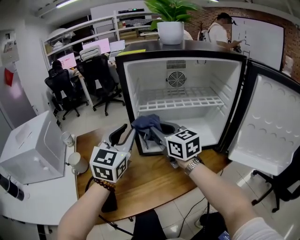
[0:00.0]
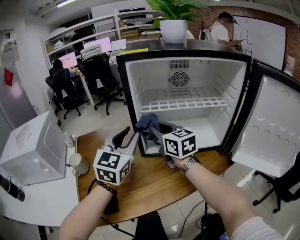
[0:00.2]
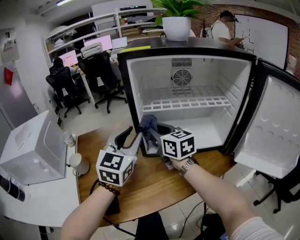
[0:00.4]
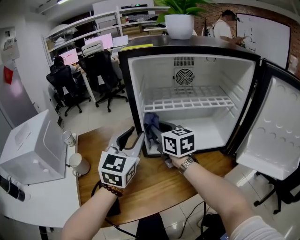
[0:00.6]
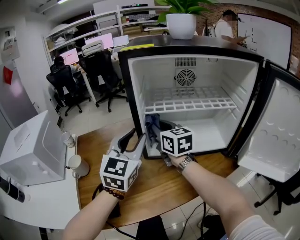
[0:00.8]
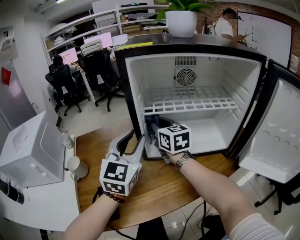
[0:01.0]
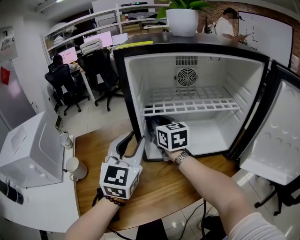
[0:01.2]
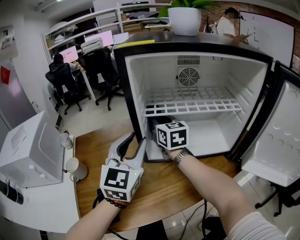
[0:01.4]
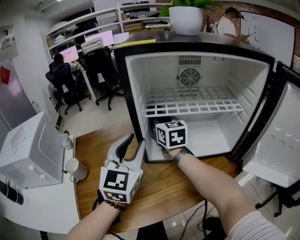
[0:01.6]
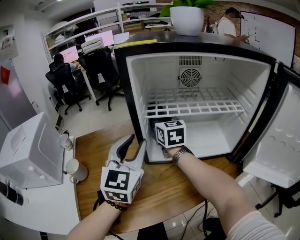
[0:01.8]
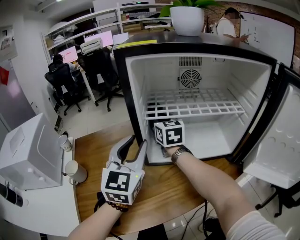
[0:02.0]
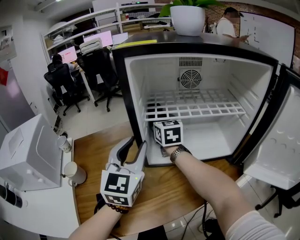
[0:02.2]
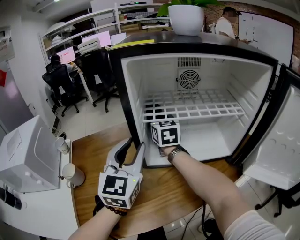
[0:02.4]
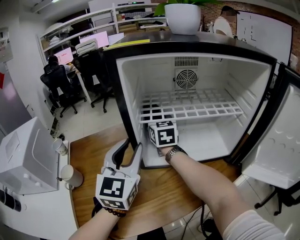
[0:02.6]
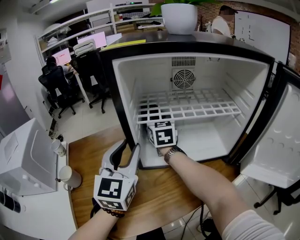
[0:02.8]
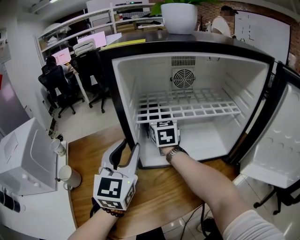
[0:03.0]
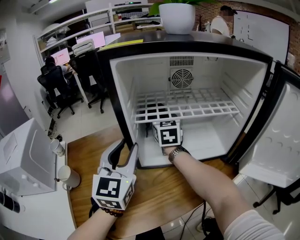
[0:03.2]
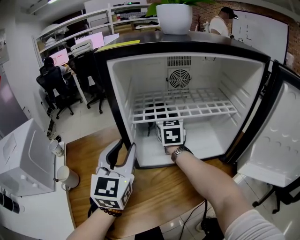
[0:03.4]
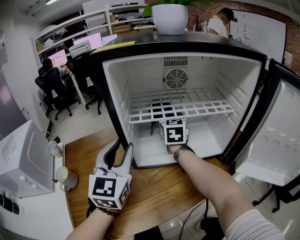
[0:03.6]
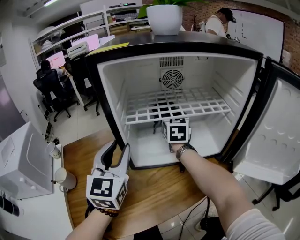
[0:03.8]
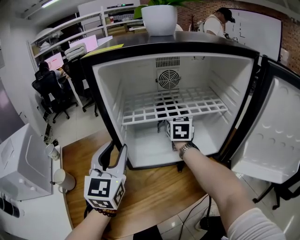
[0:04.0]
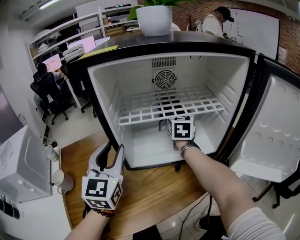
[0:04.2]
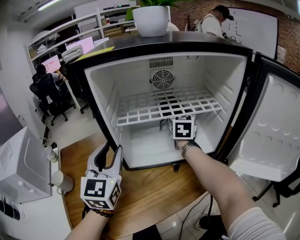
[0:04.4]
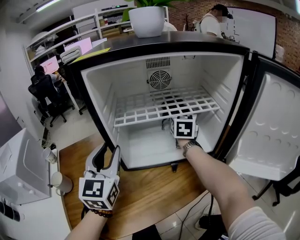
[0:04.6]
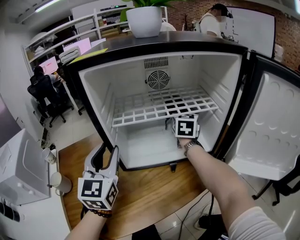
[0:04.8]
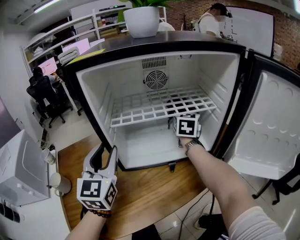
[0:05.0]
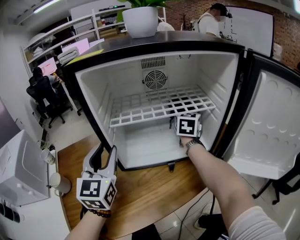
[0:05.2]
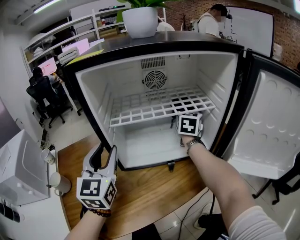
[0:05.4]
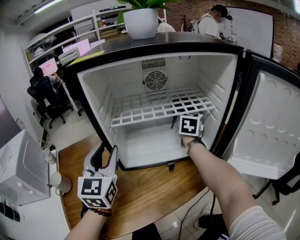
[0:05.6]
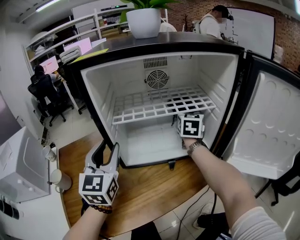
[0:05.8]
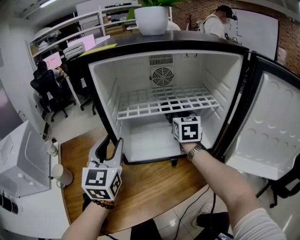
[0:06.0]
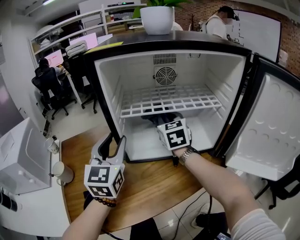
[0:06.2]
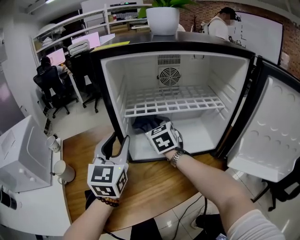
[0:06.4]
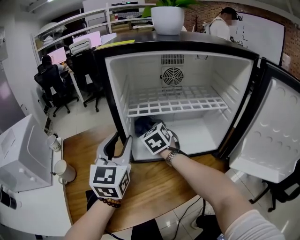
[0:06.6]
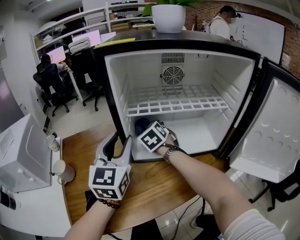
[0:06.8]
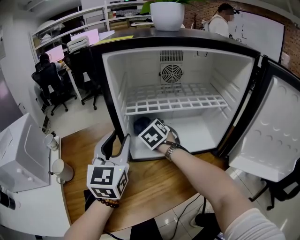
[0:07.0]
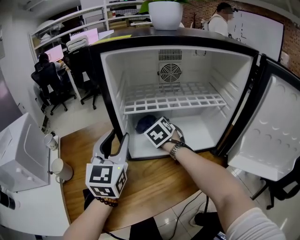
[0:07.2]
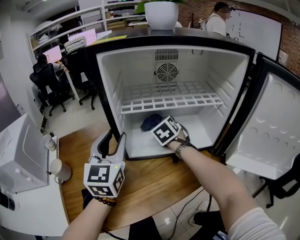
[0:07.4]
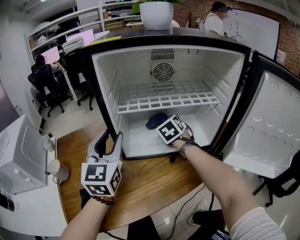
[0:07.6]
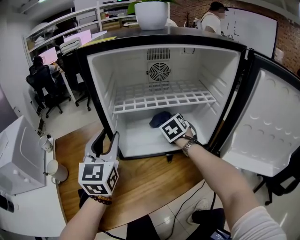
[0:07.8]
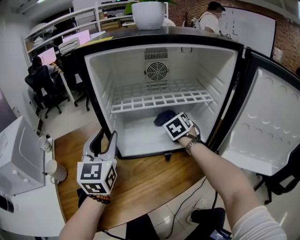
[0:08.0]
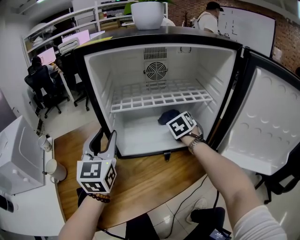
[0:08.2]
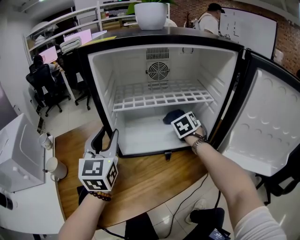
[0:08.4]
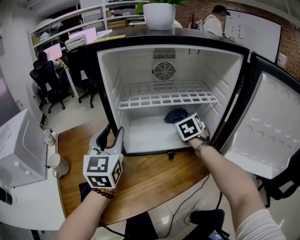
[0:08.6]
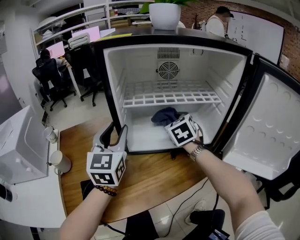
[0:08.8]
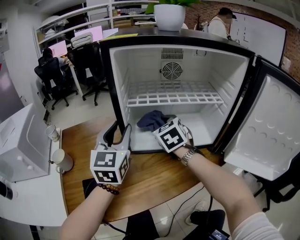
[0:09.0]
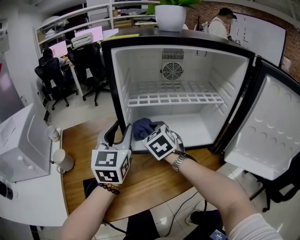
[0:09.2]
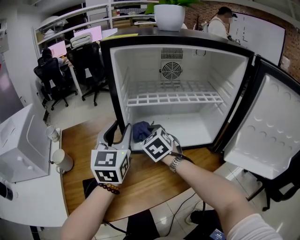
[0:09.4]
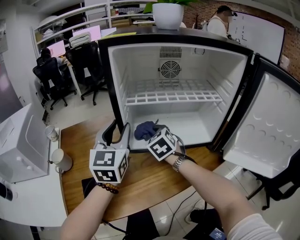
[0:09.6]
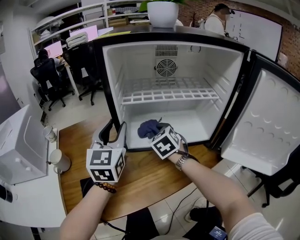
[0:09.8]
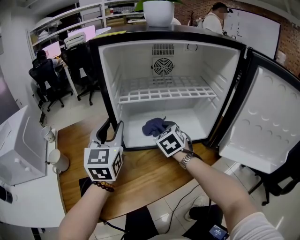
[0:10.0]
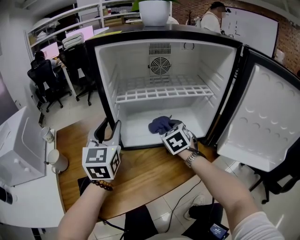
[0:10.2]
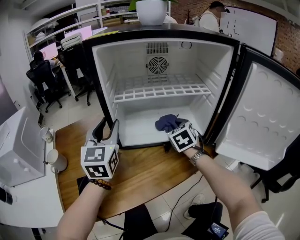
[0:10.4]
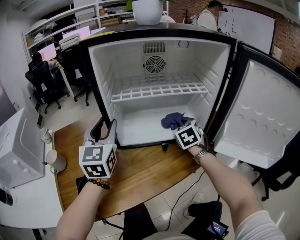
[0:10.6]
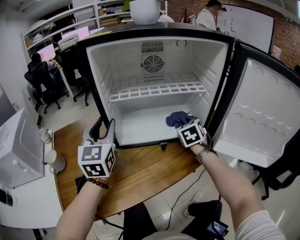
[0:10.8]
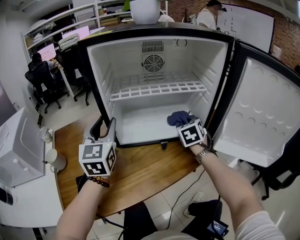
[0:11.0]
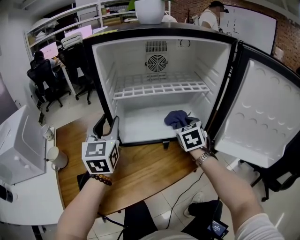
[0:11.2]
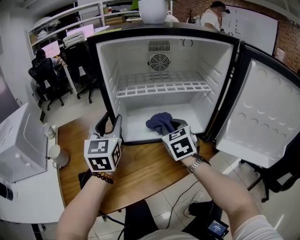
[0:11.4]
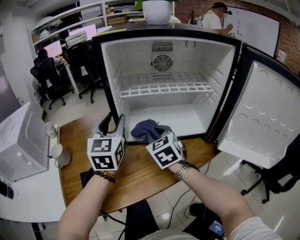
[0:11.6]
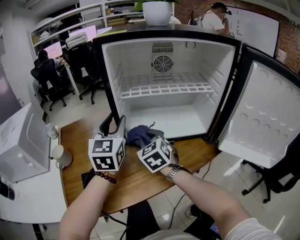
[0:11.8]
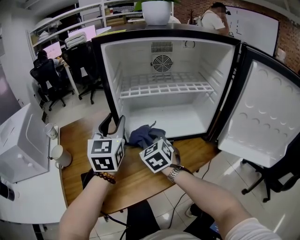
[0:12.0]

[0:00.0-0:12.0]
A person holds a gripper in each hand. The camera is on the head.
0:00.0 to 0:01.6: The right gripper goes about 15 cm forward.
0:01.6 to 0:03.0: The right gripper moves roughly 5 cm.
0:03.0 to 0:04.4: The right gripper is displaced to the right by approximately 15 cm.
0:04.4 to 0:06.0: The right gripper moves some 10 cm to the right and comes back.
0:06.0 to 0:07.6: The right gripper travels downward by about 10 cm, reaches about 20 cm to the left, then returns, and rotates approximately 40 degrees.
0:07.6 to 0:09.0: The right gripper goes about 10 cm backward, to the left and upward.
0:09.0 to 0:10.4: The right gripper is displaced to the right and downward by roughly 15 cm.
0:10.4 to 0:12.0: The right gripper travels to the left and backward by some 15 cm.

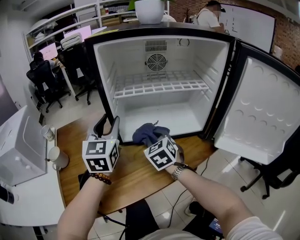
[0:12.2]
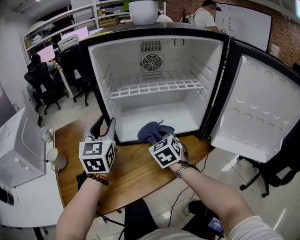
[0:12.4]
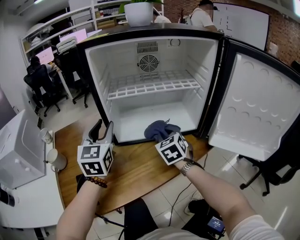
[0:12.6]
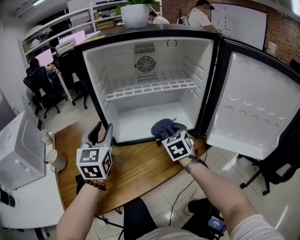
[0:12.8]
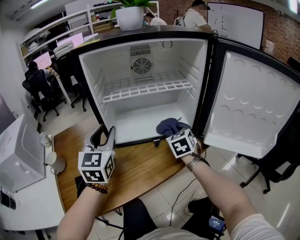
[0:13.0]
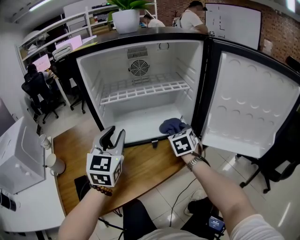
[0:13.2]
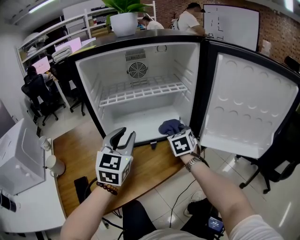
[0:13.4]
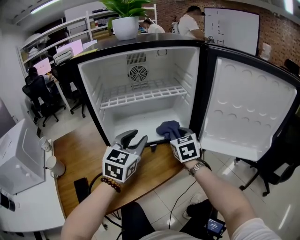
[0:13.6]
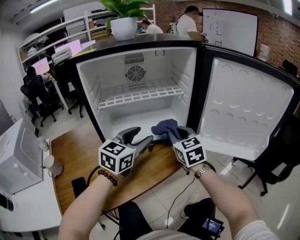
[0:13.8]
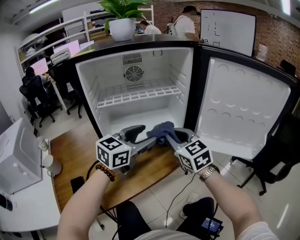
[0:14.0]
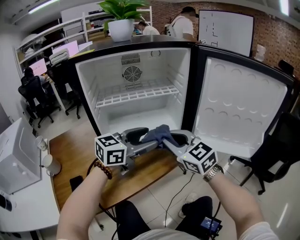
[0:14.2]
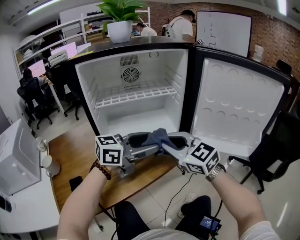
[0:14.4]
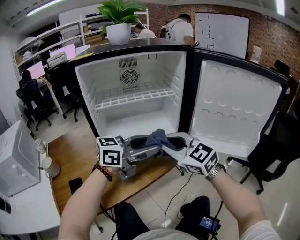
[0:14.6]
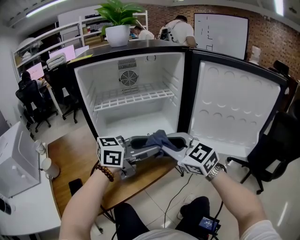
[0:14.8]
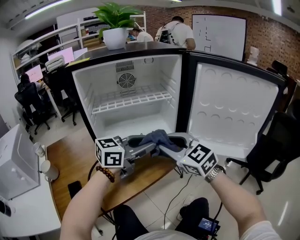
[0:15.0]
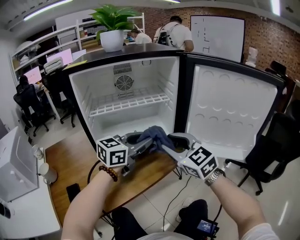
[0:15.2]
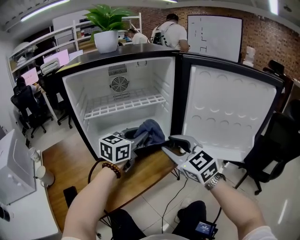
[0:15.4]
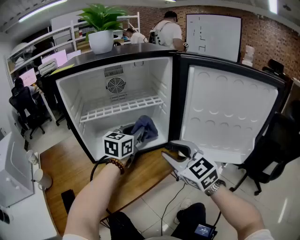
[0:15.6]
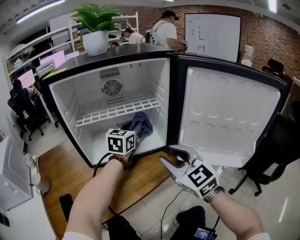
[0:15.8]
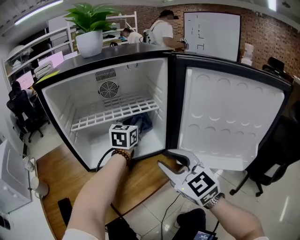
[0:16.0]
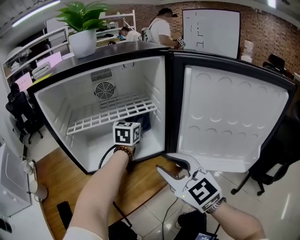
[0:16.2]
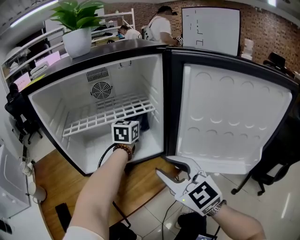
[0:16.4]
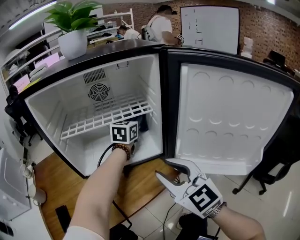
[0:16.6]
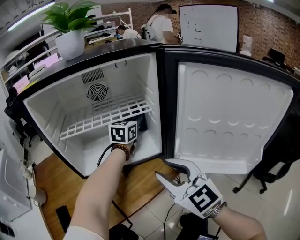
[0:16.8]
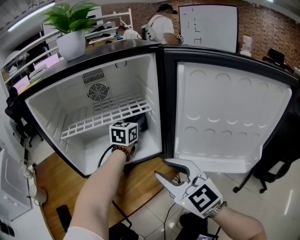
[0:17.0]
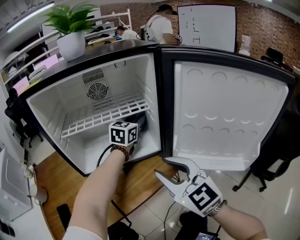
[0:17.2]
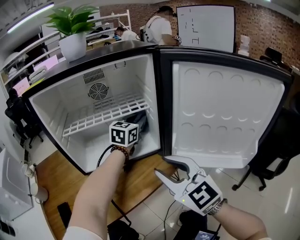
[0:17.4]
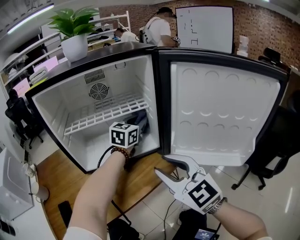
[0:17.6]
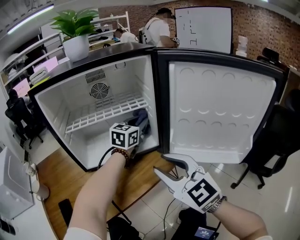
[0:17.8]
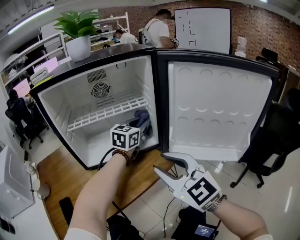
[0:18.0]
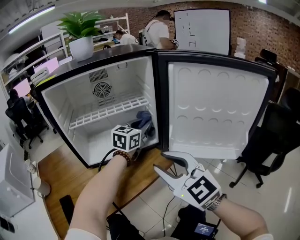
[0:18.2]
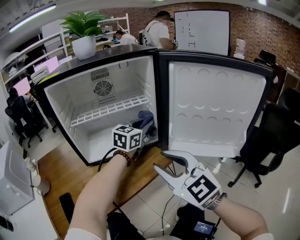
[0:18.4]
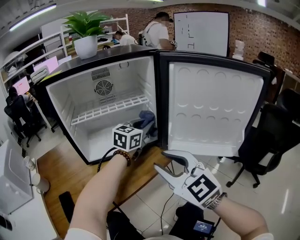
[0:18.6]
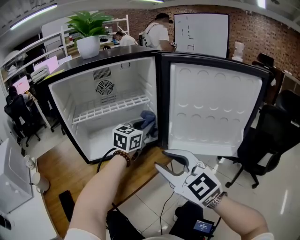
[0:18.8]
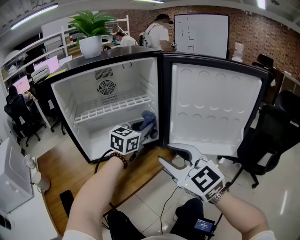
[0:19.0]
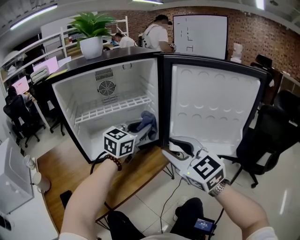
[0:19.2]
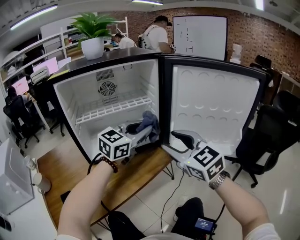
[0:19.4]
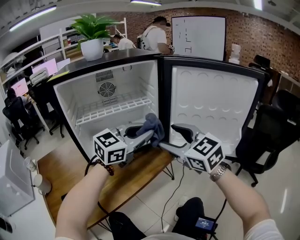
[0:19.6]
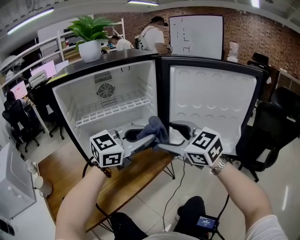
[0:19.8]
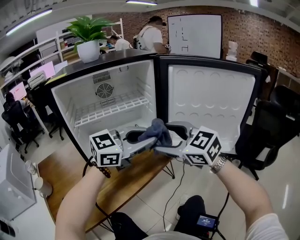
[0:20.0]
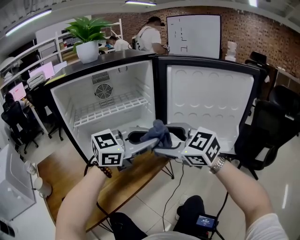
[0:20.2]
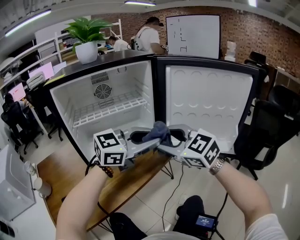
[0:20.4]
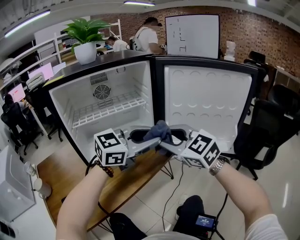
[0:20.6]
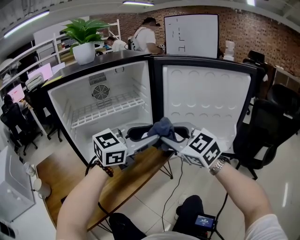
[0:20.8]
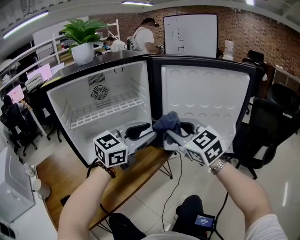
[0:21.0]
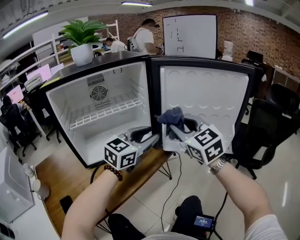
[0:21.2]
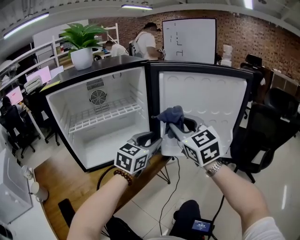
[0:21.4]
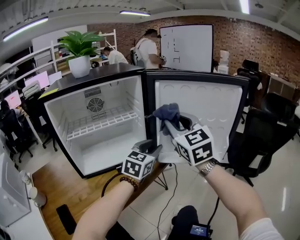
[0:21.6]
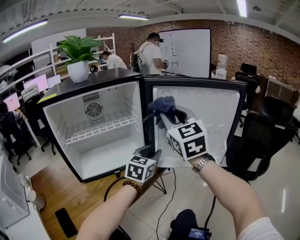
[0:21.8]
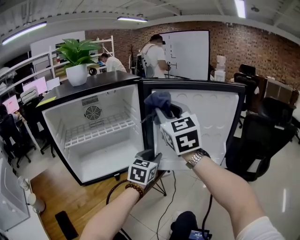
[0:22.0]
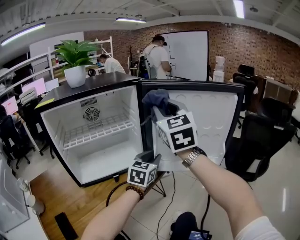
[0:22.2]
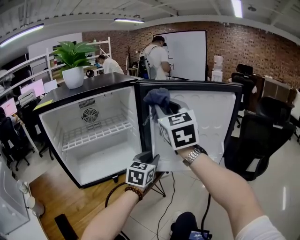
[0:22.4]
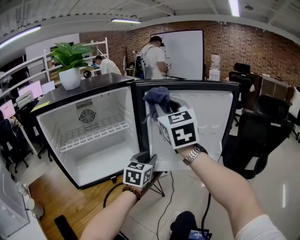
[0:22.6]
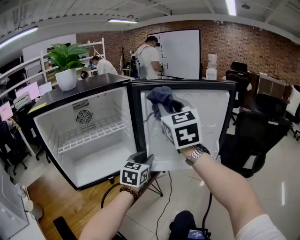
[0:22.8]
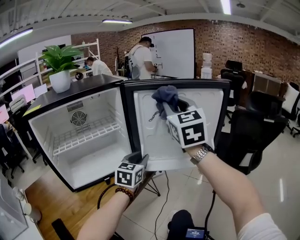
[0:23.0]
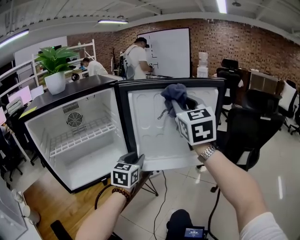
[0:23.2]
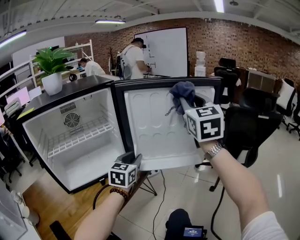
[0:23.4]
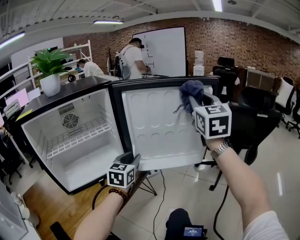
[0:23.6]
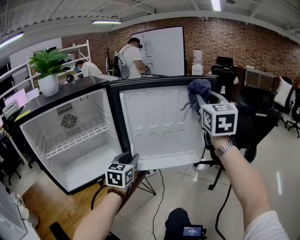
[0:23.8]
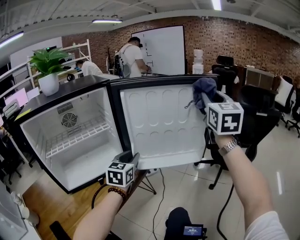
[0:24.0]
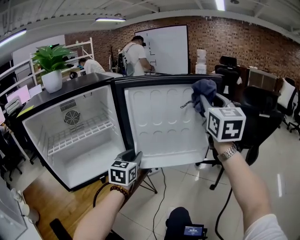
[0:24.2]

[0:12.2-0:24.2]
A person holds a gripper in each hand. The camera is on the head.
0:12.2 to 0:13.8: The right gripper goes about 20 cm to the right and upward, while the left gripper shifts some 20 cm to the right, and rotates about 40 degrees.
0:13.8 to 0:15.2: The right gripper is displaced backward and upward by about 10 cm; the left gripper heads to the right, covering roughly 5 cm, turns by some 20 degrees, and closes its fingers.
0:15.2 to 0:16.6: The left gripper goes approximately 25 cm forward, and changes its angle by approximately 30 degrees.
0:16.6 to 0:18.2: The right gripper travels backward by about 5 cm. The left gripper heads backward, covering roughly 15 cm.
0:18.2 to 0:19.8: The left gripper travels backward and upward by some 20 cm, and changes its angle by roughly 30 degrees. Meanwhile the right gripper moves forward, approximately 5 cm, and opens its fingers.
0:19.8 to 0:21.2: The right gripper shifts some 5 cm to the right, rotates about 20 degrees, and closes its fingers, while the left gripper ends up approximately 5 cm from where it was.
0:21.2 to 0:22.6: The right gripper heads upward and forward, covering roughly 15 cm, and changes its angle by about 20 degrees; the left gripper shifts approximately 10 cm forward and downward.
0:22.6 to 0:24.2: The right gripper shifts about 25 cm to the right, and rotates some 20 degrees.
